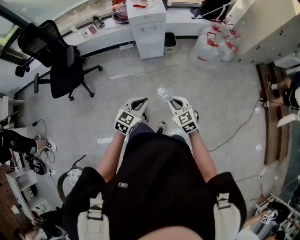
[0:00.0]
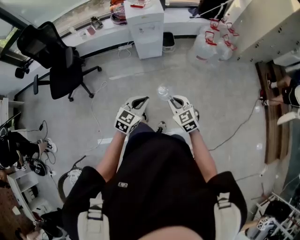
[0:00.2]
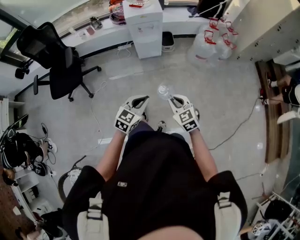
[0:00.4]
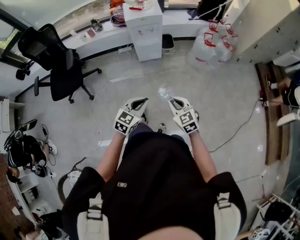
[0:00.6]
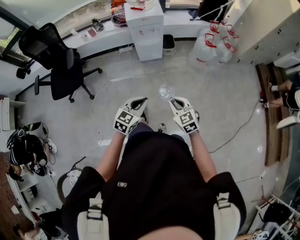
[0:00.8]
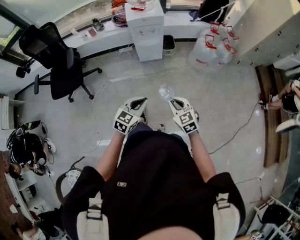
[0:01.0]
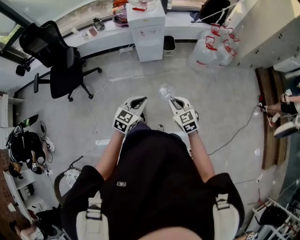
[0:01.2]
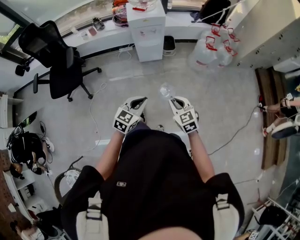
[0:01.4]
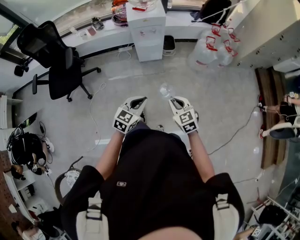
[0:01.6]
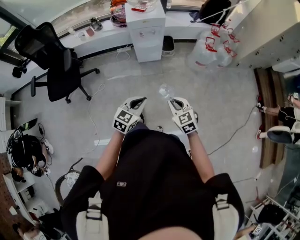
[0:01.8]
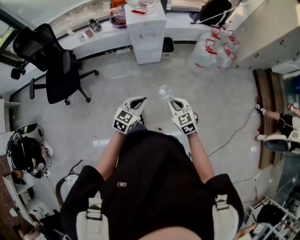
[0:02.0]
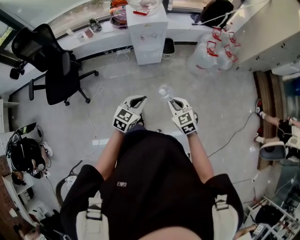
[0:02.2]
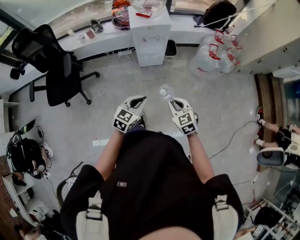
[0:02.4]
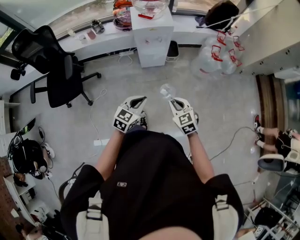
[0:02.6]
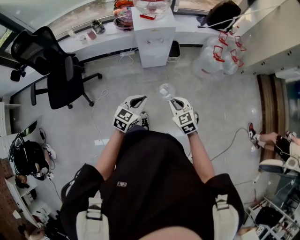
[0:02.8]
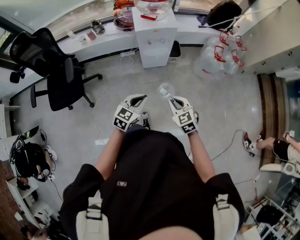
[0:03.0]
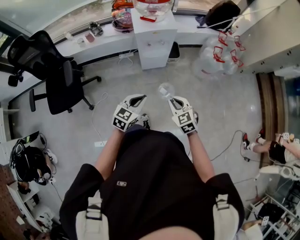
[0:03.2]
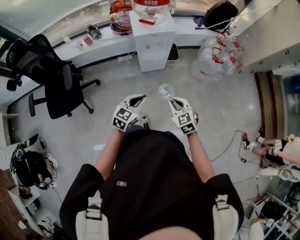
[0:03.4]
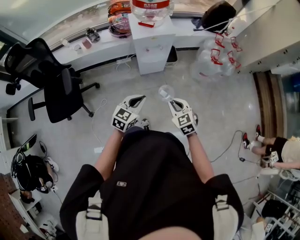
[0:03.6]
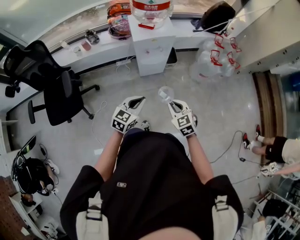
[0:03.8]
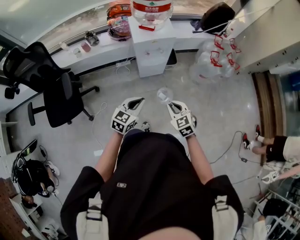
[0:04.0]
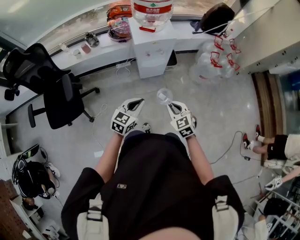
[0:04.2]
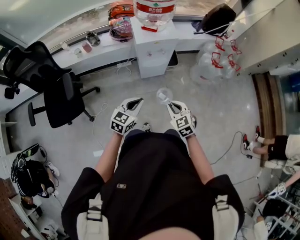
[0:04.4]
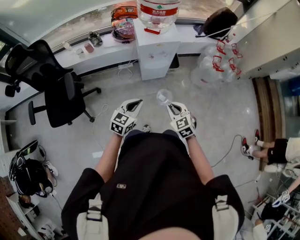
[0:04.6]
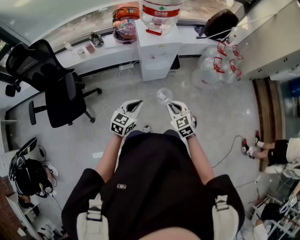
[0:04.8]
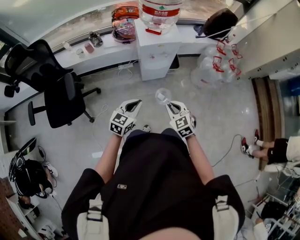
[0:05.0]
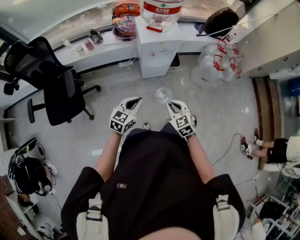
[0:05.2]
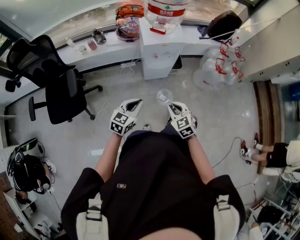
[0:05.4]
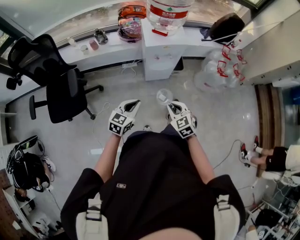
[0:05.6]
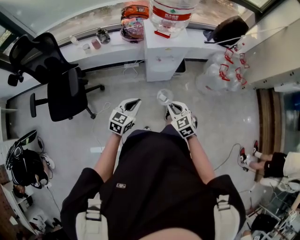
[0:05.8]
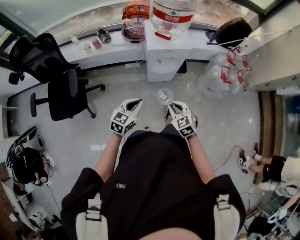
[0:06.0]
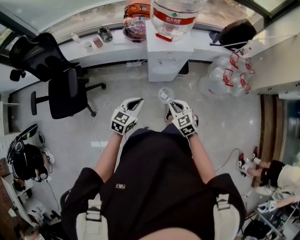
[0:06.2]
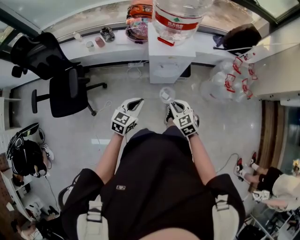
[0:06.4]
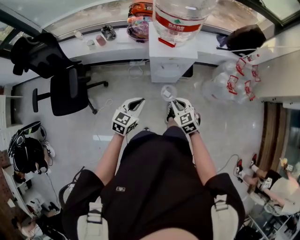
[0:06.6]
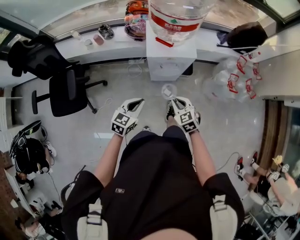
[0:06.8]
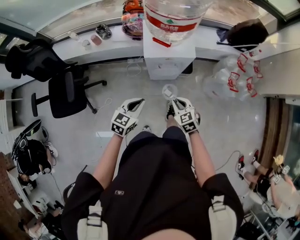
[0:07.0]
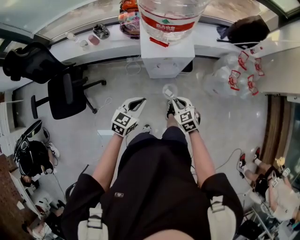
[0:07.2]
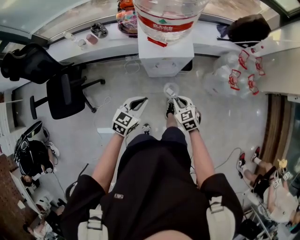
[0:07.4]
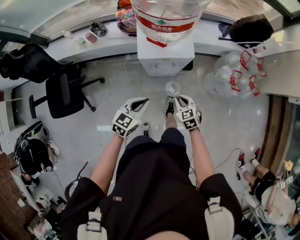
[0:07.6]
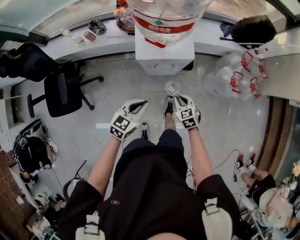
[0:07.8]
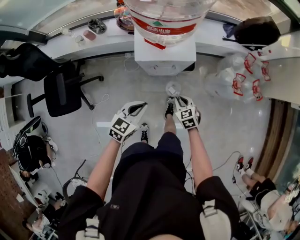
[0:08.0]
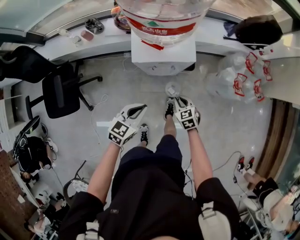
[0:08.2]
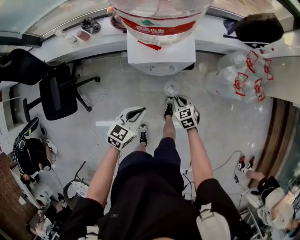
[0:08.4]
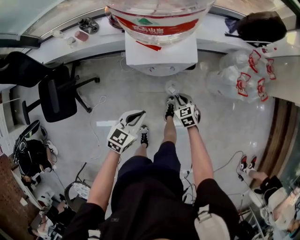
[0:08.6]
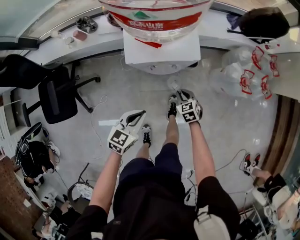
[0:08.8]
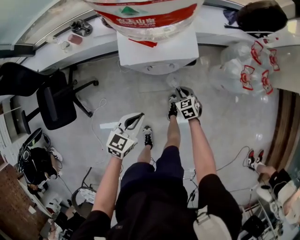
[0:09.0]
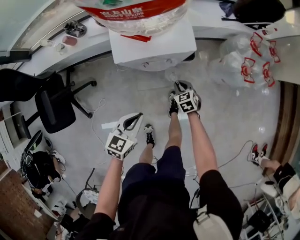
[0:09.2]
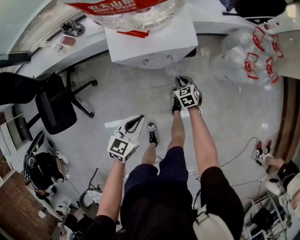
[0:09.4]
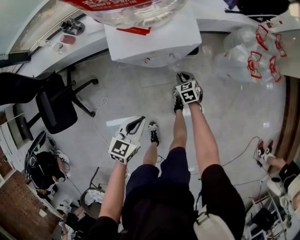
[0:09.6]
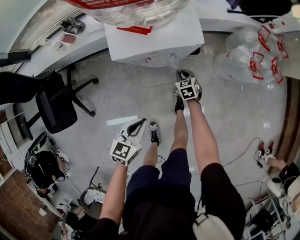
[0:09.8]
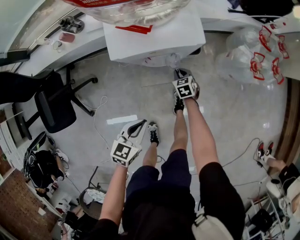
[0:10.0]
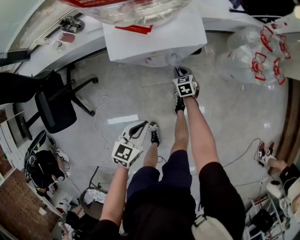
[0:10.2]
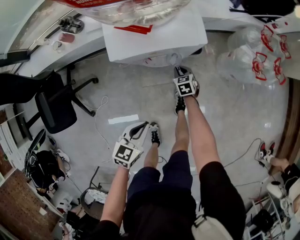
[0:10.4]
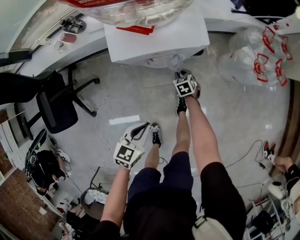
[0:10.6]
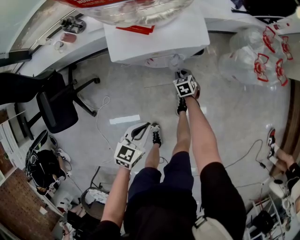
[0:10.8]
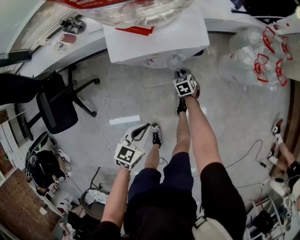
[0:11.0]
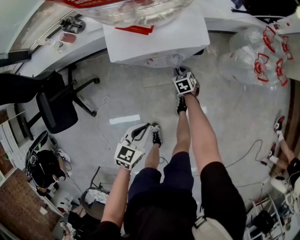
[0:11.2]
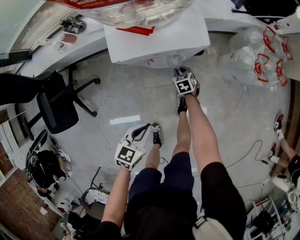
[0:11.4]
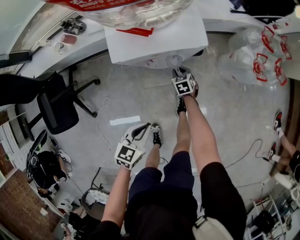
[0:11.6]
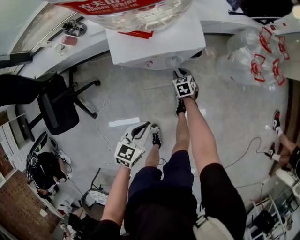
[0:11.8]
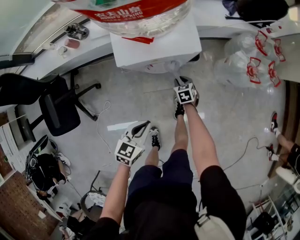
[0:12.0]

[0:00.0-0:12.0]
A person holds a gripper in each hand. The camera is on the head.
0:00.0 to 0:01.6: The grippers stay close to where they were, moving slightly.
0:01.6 to 0:03.0: Both grippers move forward and to the left, about 20 cm.
0:03.0 to 0:04.4: The right gripper shifts some 5 cm to the left. The left gripper heads to the left and forward, covering approximately 10 cm.
0:04.4 to 0:06.0: The two grippers go about 5 cm forward.
0:06.0 to 0:07.6: The left gripper shifts about 20 cm forward and to the right. Meanwhile the right gripper moves forward, downward and to the right, some 25 cm.
0:07.6 to 0:09.0: The right gripper moves downward, approximately 20 cm. Meanwhile the left gripper goes some 10 cm downward.
0:09.0 to 0:10.4: The left gripper shifts approximately 10 cm downward and backward. The right gripper is displaced downward and forward by roughly 15 cm.
0:10.4 to 0:12.0: The grippers make only small movements.

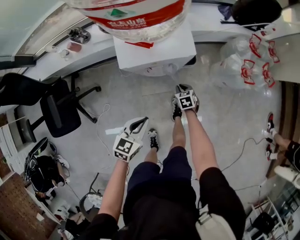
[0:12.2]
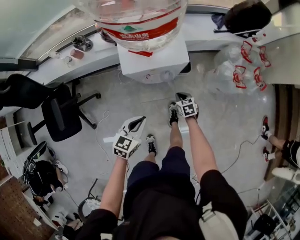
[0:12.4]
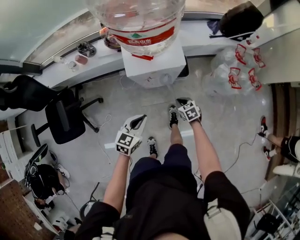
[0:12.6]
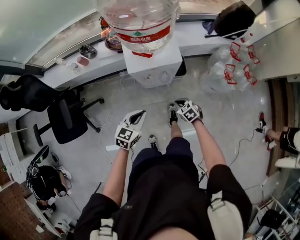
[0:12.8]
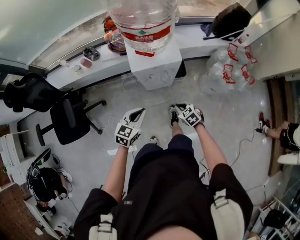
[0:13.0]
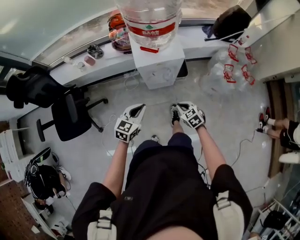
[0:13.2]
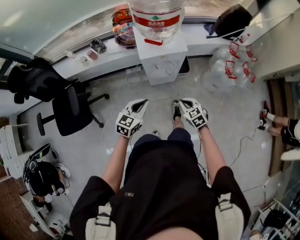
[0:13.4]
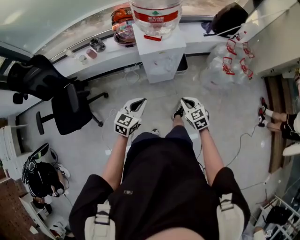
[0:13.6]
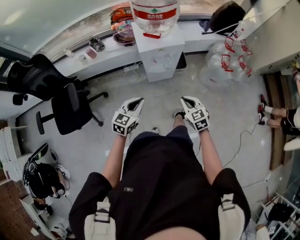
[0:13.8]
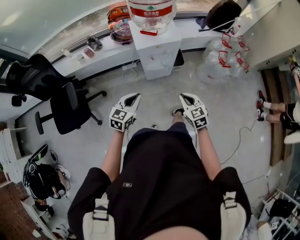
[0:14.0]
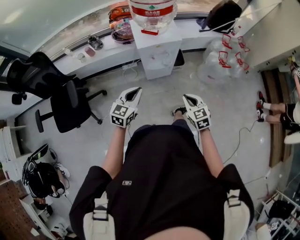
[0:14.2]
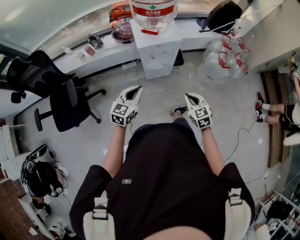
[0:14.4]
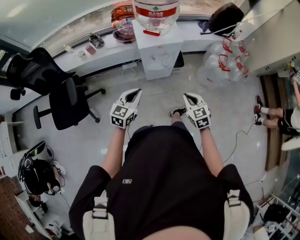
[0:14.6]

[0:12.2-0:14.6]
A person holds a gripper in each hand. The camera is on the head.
0:12.2 to 0:13.4: The left gripper shifts roughly 15 cm upward. Meanwhile the right gripper goes about 35 cm upward and backward, and turns by some 20 degrees.
0:13.4 to 0:14.6: The left gripper moves approximately 5 cm. The right gripper shifts roughly 10 cm upward and backward.

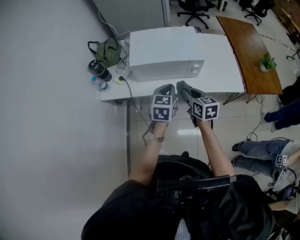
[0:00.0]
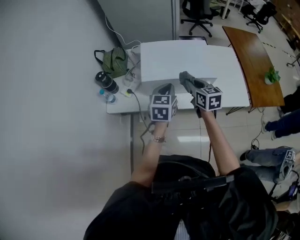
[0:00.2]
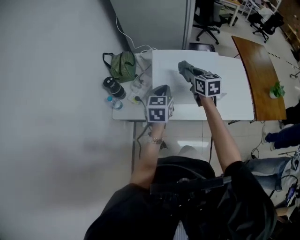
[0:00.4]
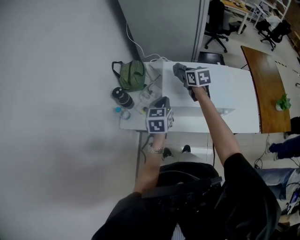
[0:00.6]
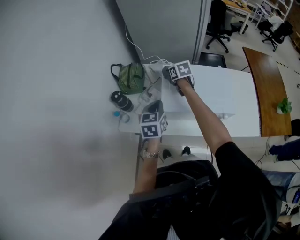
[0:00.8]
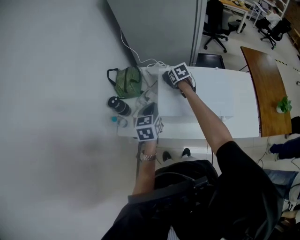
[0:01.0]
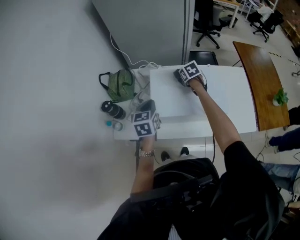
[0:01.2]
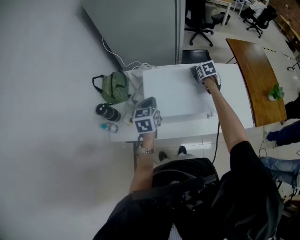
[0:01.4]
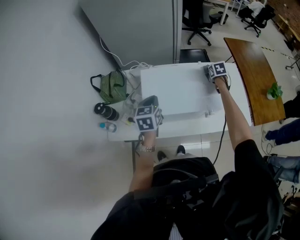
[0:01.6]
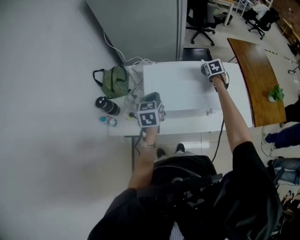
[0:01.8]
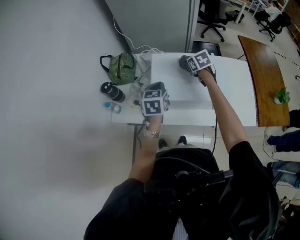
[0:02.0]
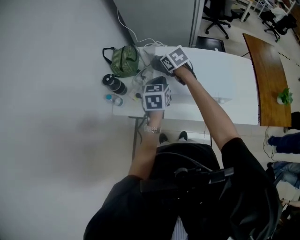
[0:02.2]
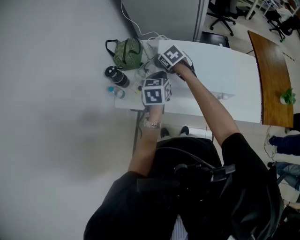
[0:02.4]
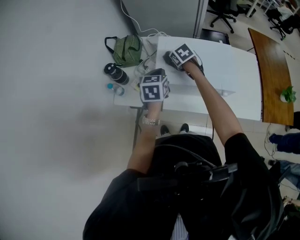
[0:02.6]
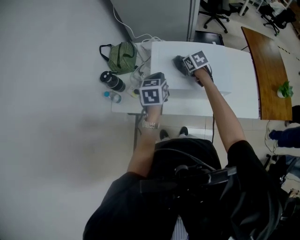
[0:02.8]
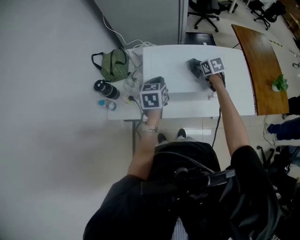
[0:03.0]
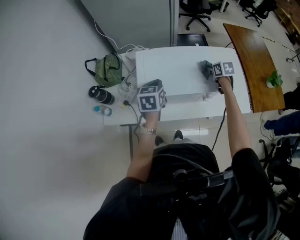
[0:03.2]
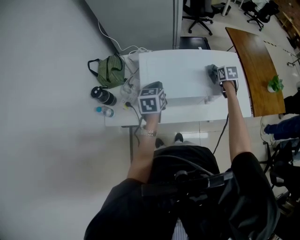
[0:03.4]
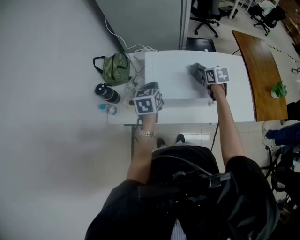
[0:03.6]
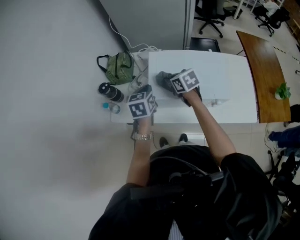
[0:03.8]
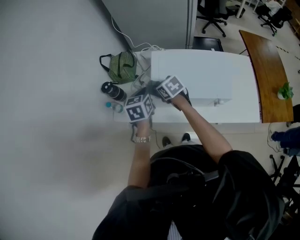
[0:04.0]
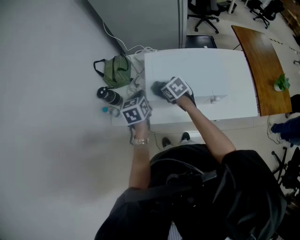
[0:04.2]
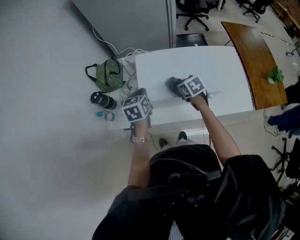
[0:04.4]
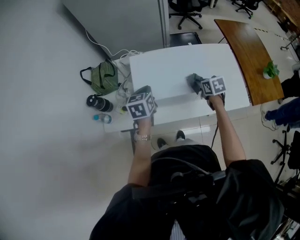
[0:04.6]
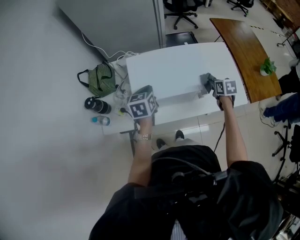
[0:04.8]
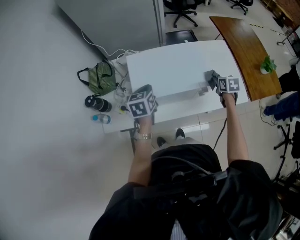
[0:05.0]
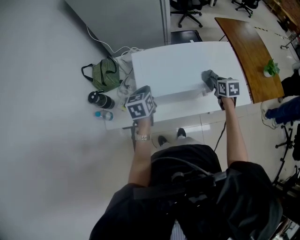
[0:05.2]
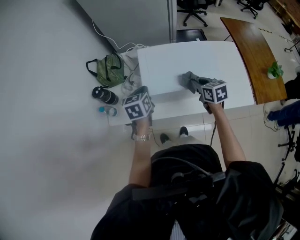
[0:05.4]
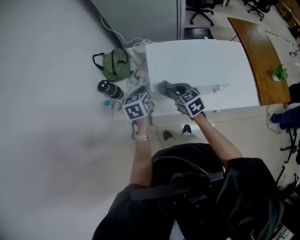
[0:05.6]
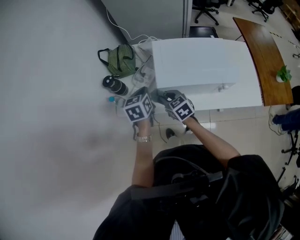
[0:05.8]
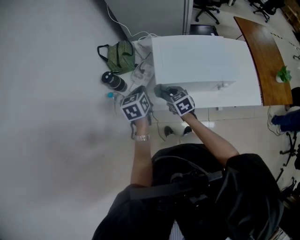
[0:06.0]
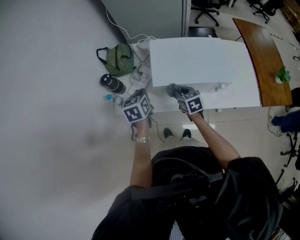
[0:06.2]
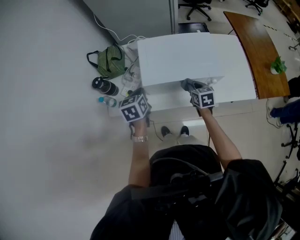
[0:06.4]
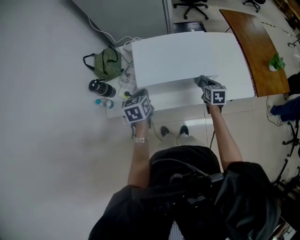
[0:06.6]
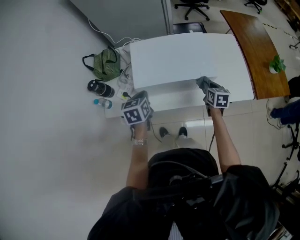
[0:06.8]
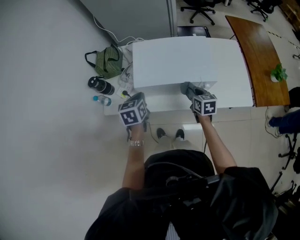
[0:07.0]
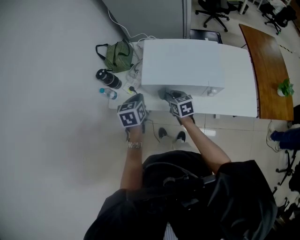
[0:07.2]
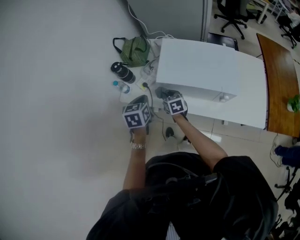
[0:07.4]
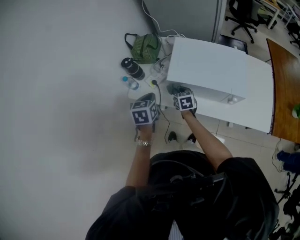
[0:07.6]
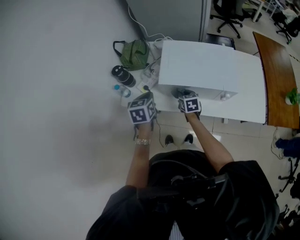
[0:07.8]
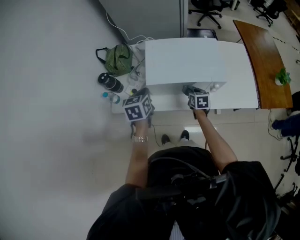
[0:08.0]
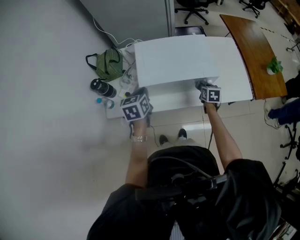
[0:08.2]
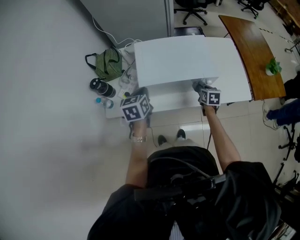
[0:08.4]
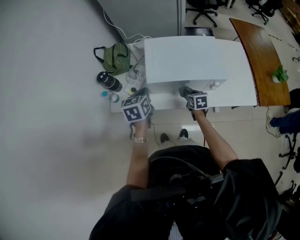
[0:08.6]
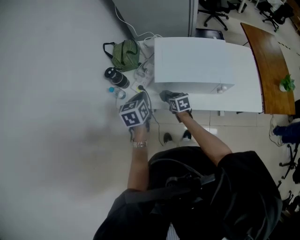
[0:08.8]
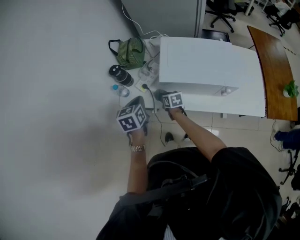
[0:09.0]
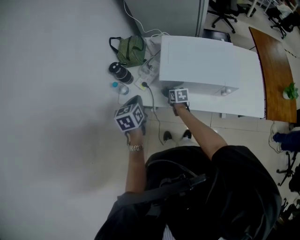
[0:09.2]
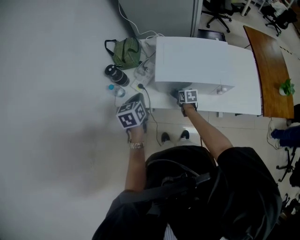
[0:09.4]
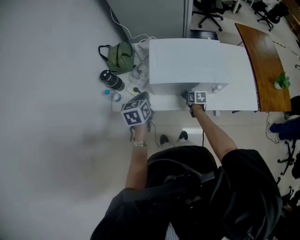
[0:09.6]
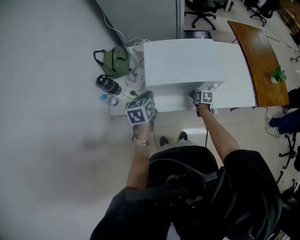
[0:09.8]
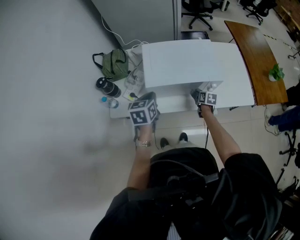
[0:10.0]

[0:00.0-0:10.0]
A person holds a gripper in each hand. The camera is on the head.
0:00.0 to 0:01.4: The right gripper shifts some 40 cm forward, and tilts its fingers about 30 degrees downward; the left gripper is displaced forward and to the left by some 30 cm.
0:01.4 to 0:02.8: The right gripper rotates roughly 20 degrees.
0:02.8 to 0:04.2: The left gripper ends up some 10 cm from where it was.
0:05.8 to 0:07.2: The left gripper goes approximately 10 cm backward and to the right. The right gripper moves approximately 35 cm to the right and comes back.
0:07.2 to 0:08.6: The right gripper turns by approximately 20 degrees.
